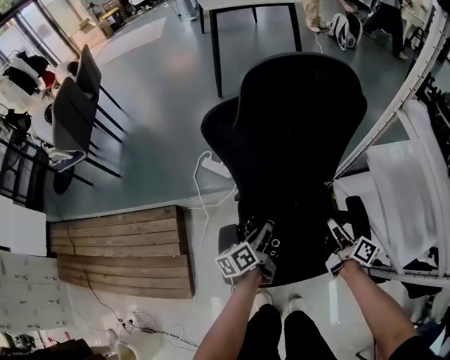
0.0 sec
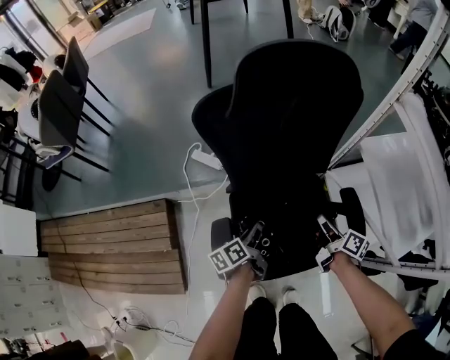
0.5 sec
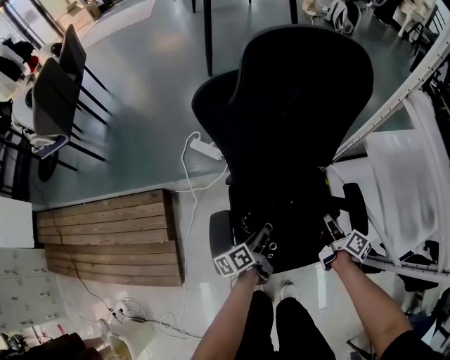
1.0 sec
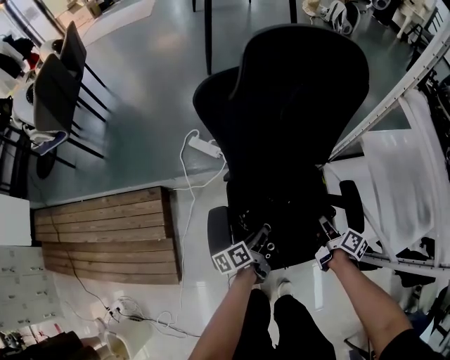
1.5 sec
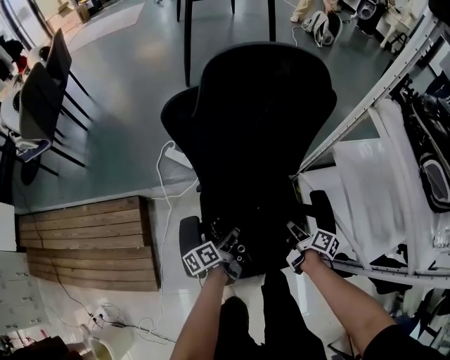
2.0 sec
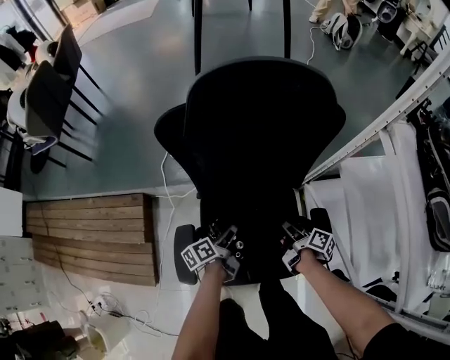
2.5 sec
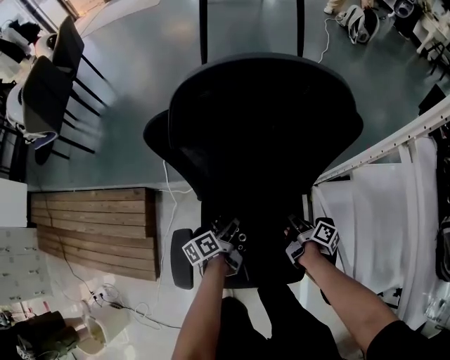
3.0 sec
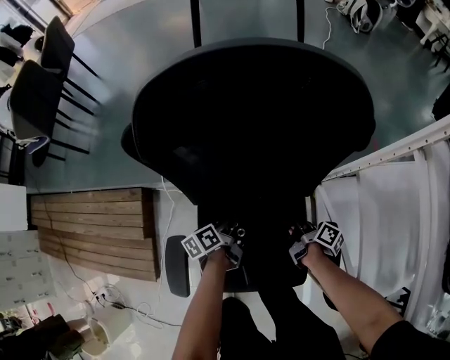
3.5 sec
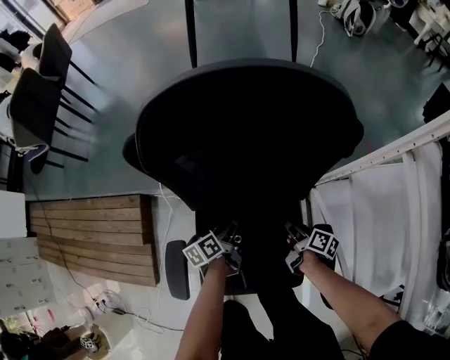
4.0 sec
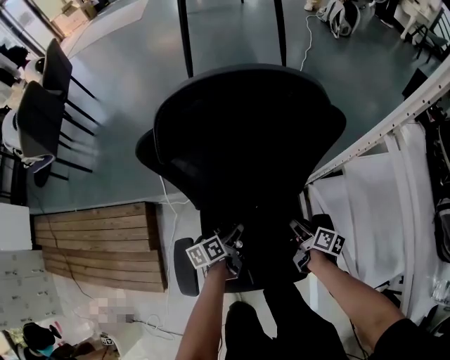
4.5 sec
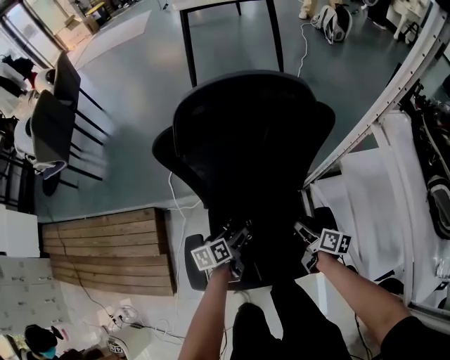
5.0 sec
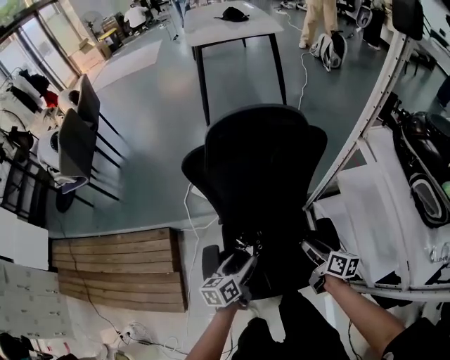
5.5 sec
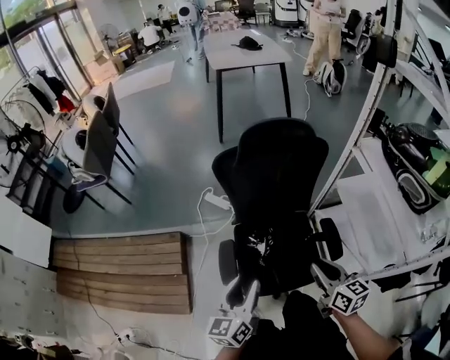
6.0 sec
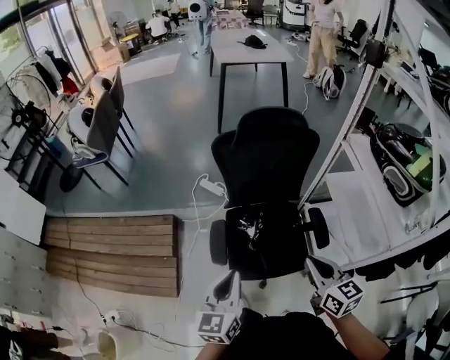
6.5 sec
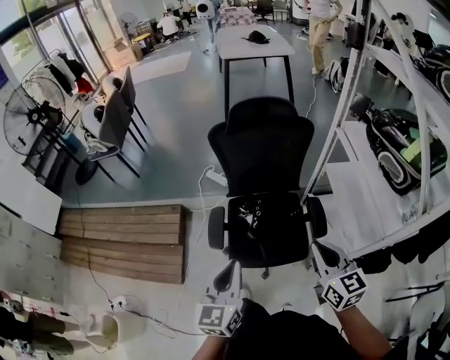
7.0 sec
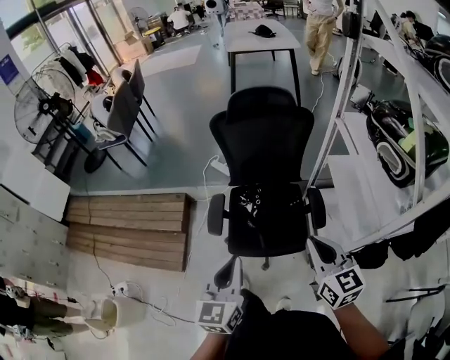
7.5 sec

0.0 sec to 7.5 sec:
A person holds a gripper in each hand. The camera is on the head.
0.0 sec to 2.0 sec: Both grippers travel together downward, approximately 10 cm. The right gripper rotates approximately 20 degrees.
2.0 sec to 4.0 sec: The left gripper moves forward, some 15 cm; the right gripper travels forward and downward by some 15 cm, and opens up.
4.0 sec to 5.5 sec: Both grippers travel together upward and backward, some 25 cm. The right gripper swivels roughly 20 degrees. The left gripper changes its angle by approximately 30 degrees, and opens up.
5.5 sec to 7.5 sec: Both grippers travel together backward and upward, some 40 cm. The right gripper rolls counterclockwise, seen from behind, by about 40 degrees, and closes. Meanwhile the left gripper turns by about 40 degrees, and closes.

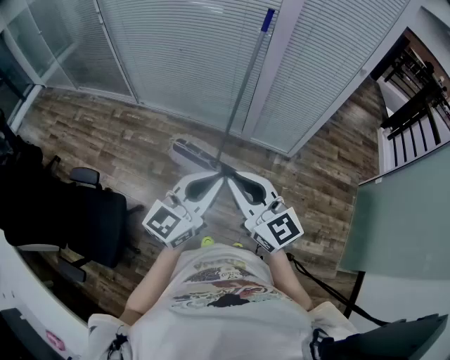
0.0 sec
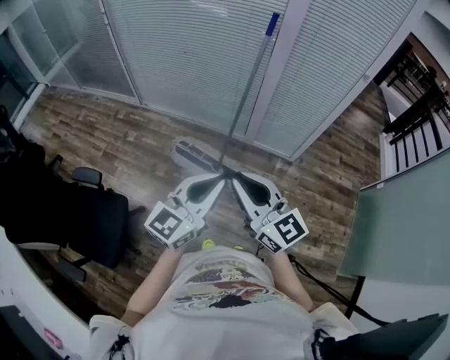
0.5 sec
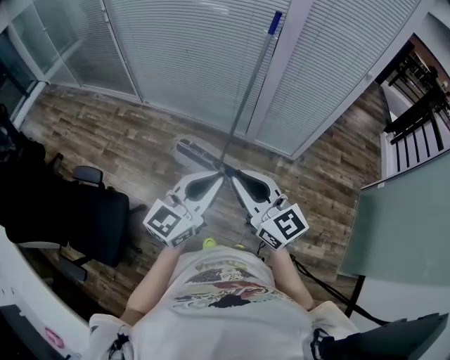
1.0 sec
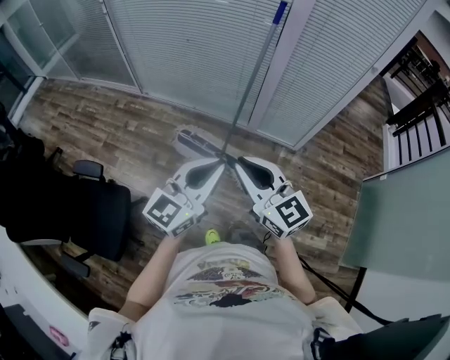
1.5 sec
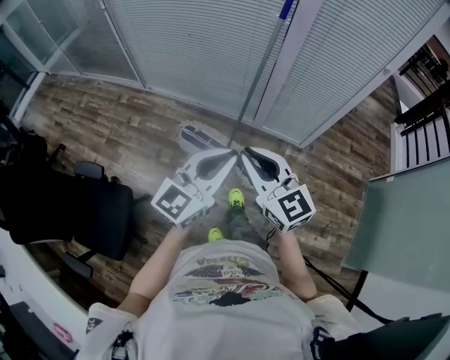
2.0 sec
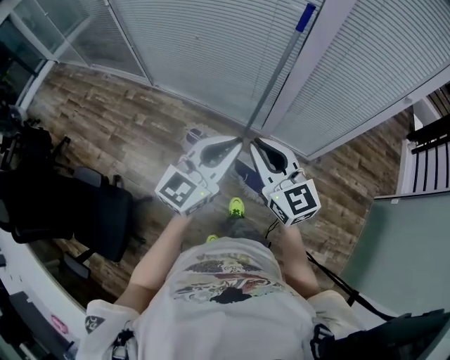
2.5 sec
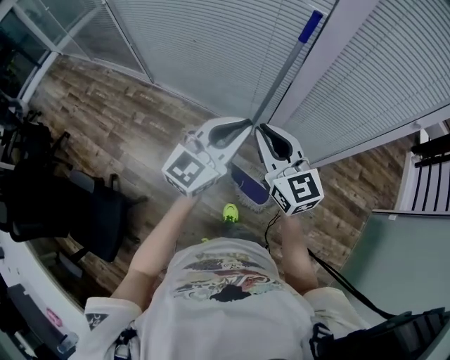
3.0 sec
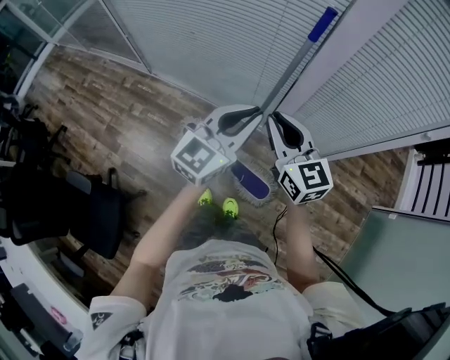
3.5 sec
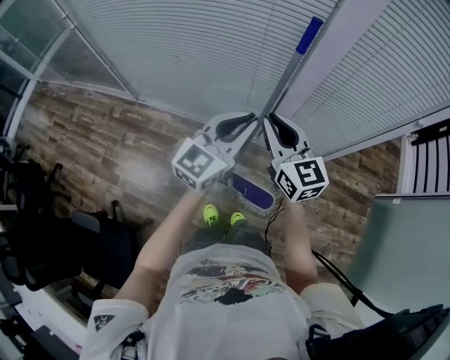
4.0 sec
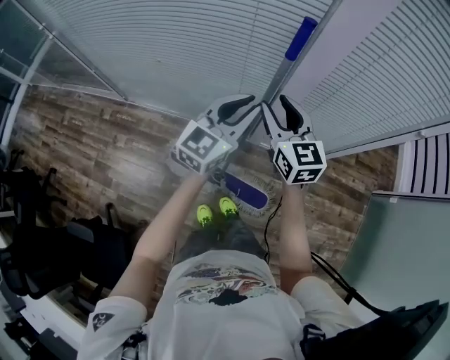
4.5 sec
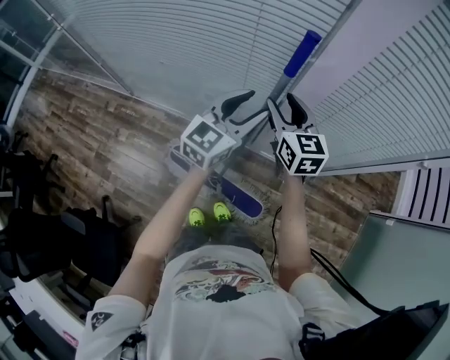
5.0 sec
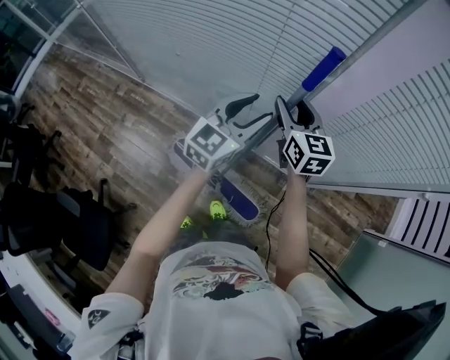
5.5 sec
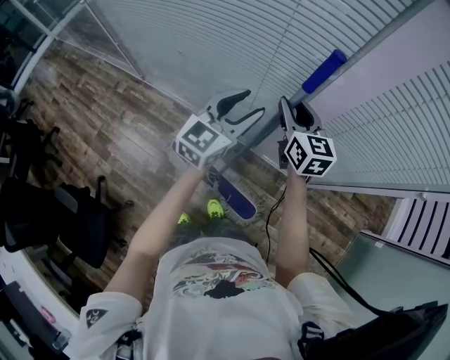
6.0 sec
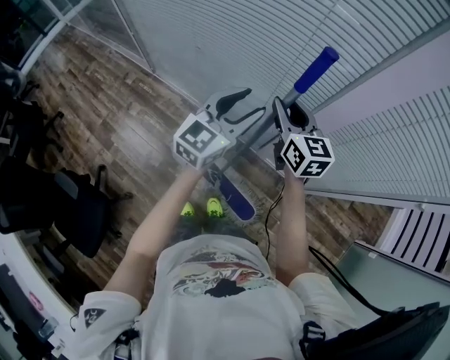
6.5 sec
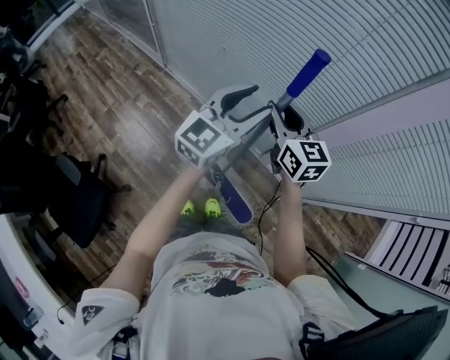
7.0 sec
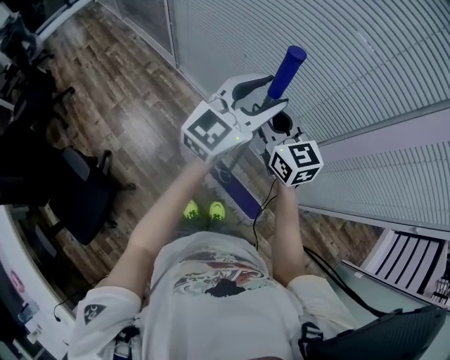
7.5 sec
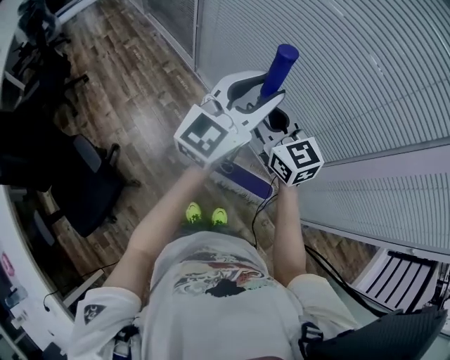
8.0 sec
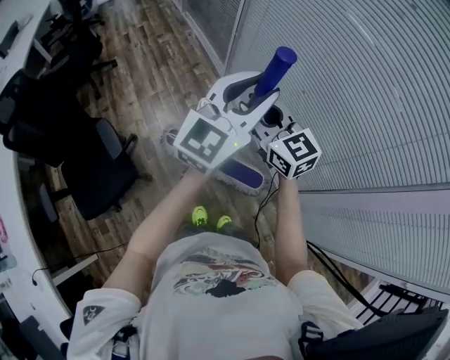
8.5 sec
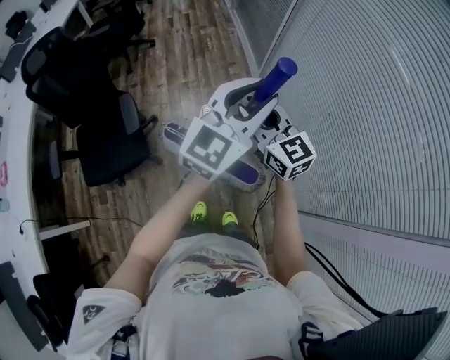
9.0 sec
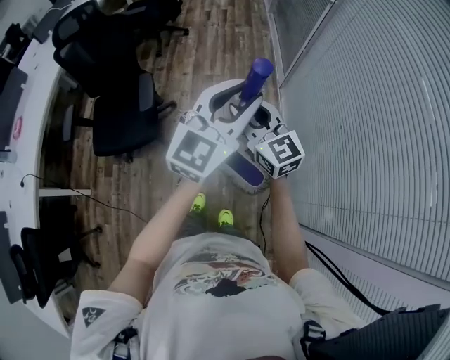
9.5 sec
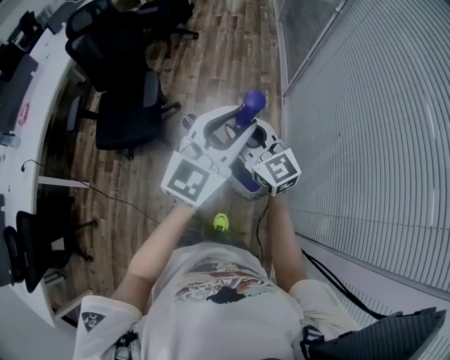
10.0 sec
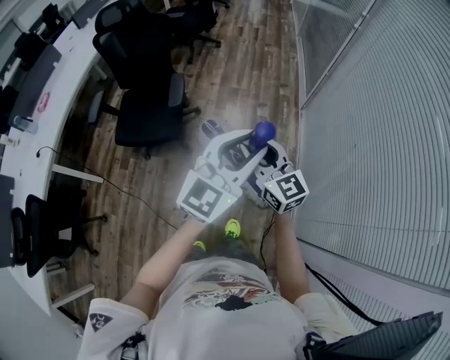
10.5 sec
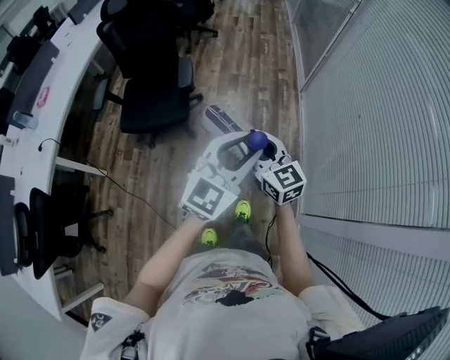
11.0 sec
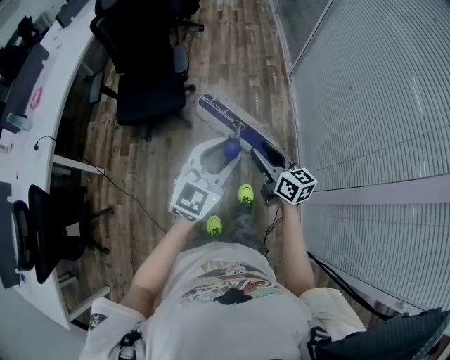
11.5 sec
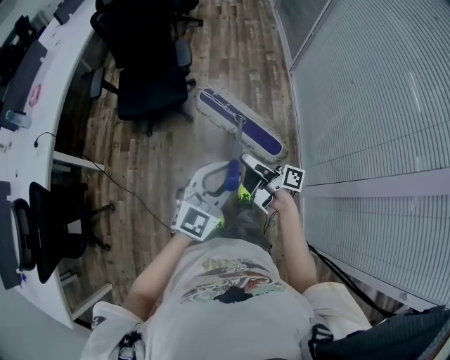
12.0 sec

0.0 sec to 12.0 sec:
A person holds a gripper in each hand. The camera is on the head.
0.0 sec to 2.0 sec: The left gripper changes place by roughly 10 cm.
2.0 sec to 4.0 sec: The left gripper moves roughly 40 cm.
4.0 sec to 6.0 sec: The left gripper moves about 20 cm, and opens up.
6.0 sec to 8.0 sec: The left gripper changes place by some 35 cm, and changes its angle by roughly 30 degrees.
8.0 sec to 10.0 sec: The left gripper shifts by some 10 cm, and swivels approximately 50 degrees.
10.0 sec to 12.0 sec: The left gripper ends up some 50 cm from where it was.

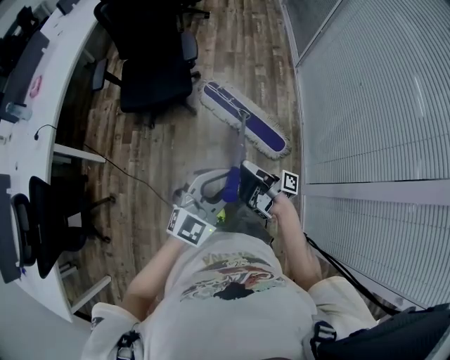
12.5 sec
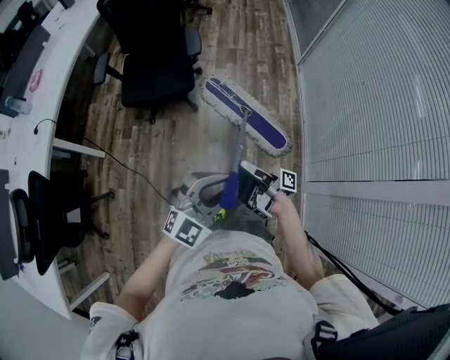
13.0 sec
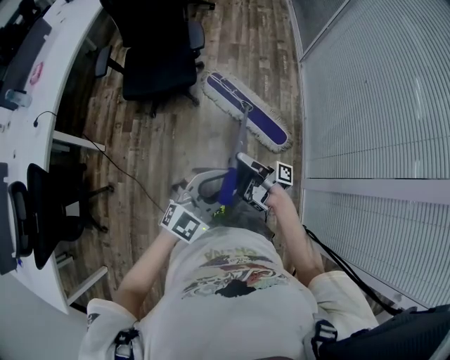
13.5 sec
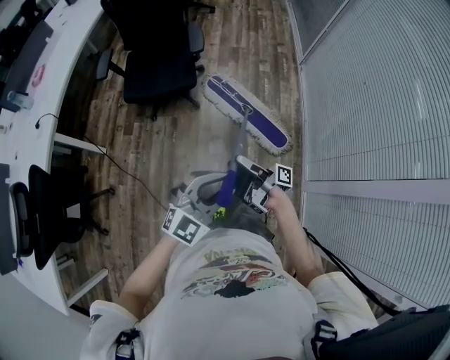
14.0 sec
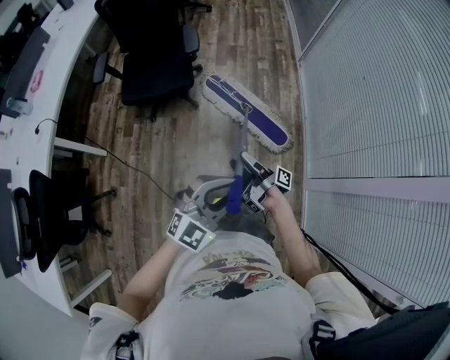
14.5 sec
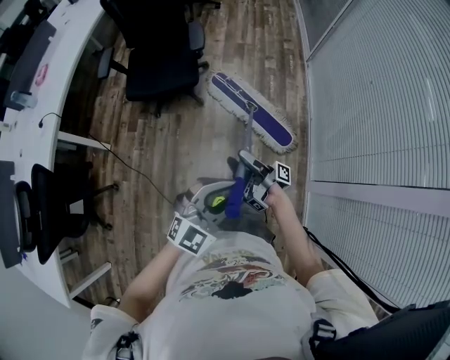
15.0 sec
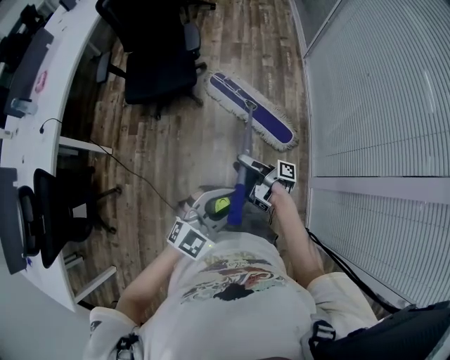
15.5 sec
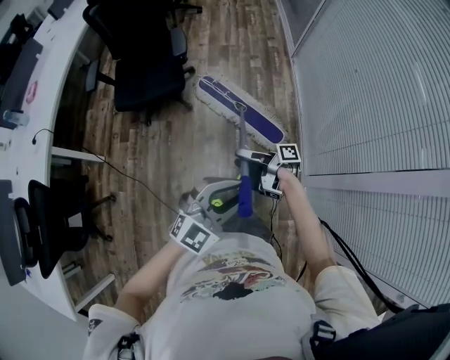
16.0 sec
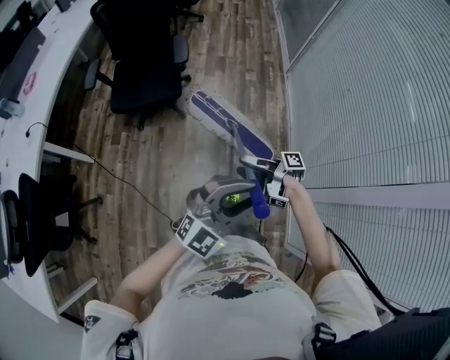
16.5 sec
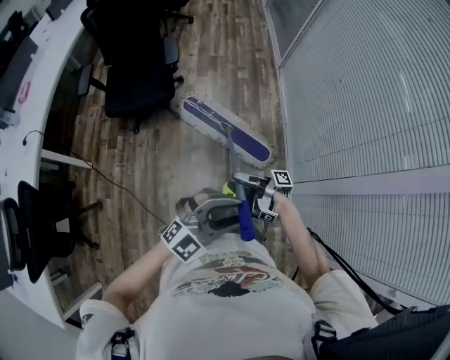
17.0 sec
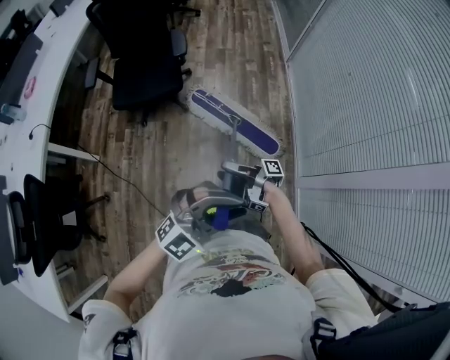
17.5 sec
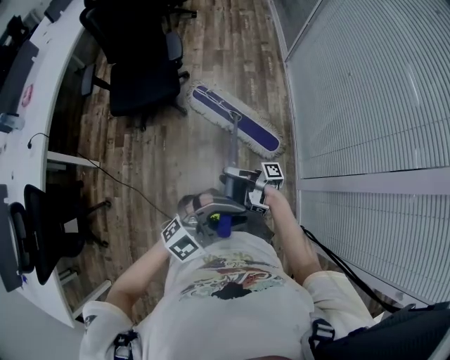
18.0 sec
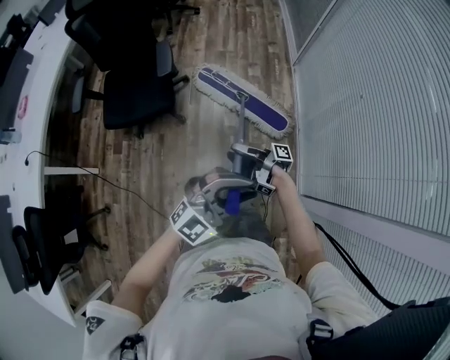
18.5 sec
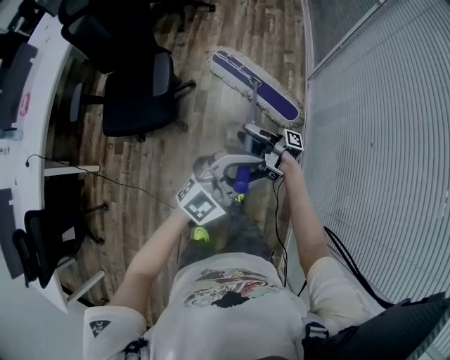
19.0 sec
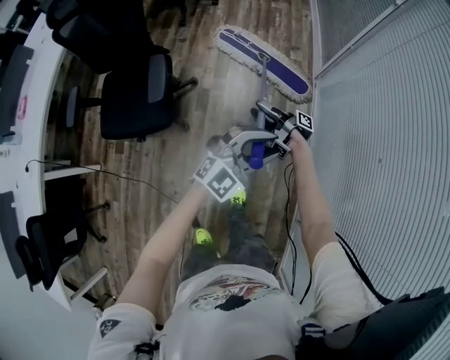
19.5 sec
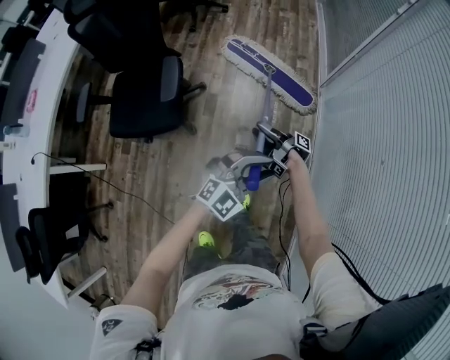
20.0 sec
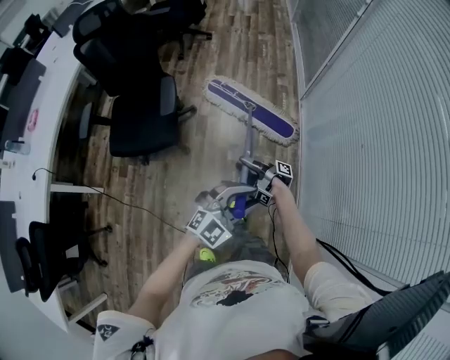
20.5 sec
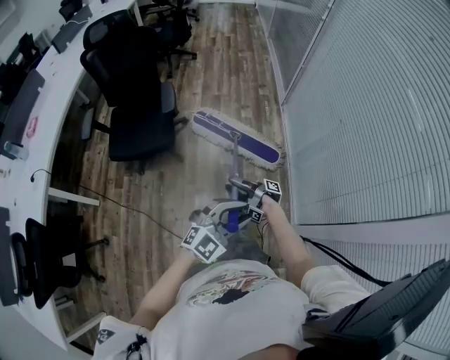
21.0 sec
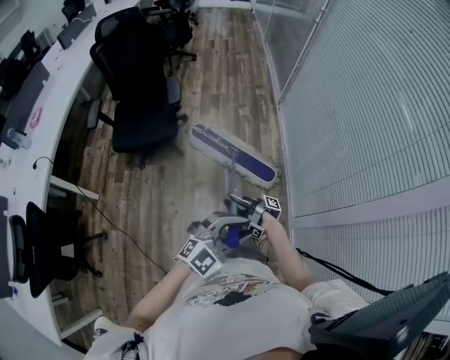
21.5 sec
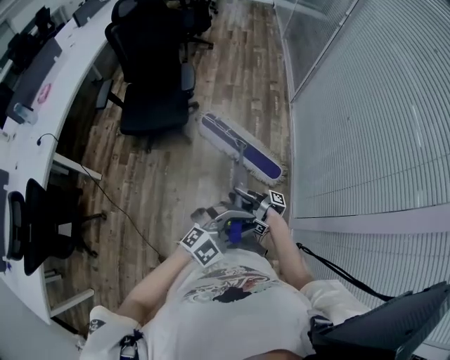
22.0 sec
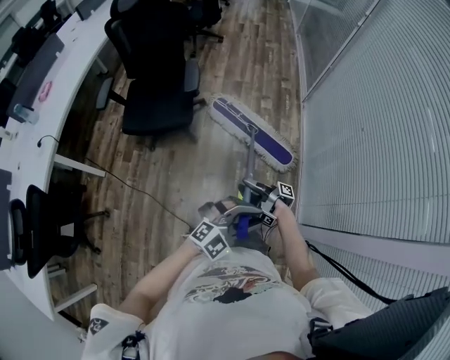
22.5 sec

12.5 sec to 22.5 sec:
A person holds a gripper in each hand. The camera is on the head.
12.5 sec to 14.5 sec: The left gripper moves approximately 5 cm.
14.5 sec to 16.5 sec: The left gripper ends up about 10 cm from where it was.
16.5 sec to 18.5 sec: The left gripper shifts by approximately 20 cm.
20.5 sec to 22.5 sec: The left gripper moves roughly 25 cm.
